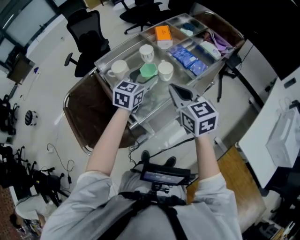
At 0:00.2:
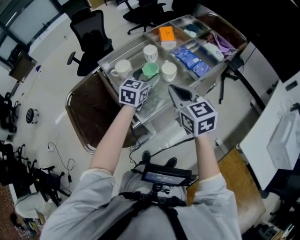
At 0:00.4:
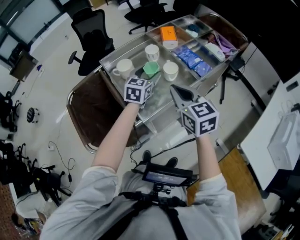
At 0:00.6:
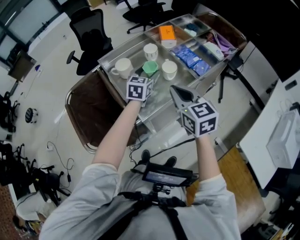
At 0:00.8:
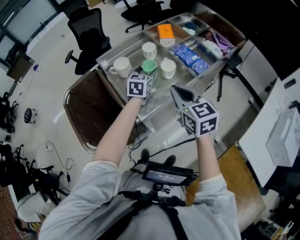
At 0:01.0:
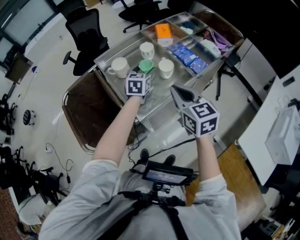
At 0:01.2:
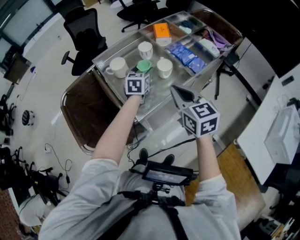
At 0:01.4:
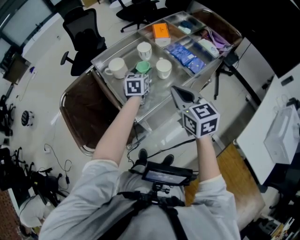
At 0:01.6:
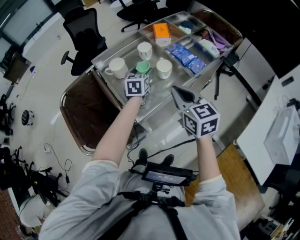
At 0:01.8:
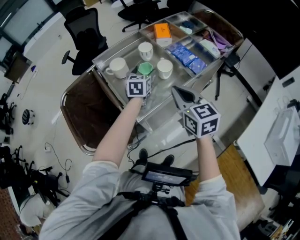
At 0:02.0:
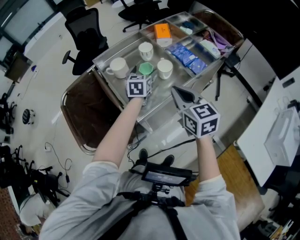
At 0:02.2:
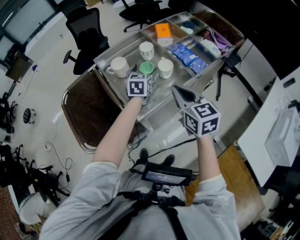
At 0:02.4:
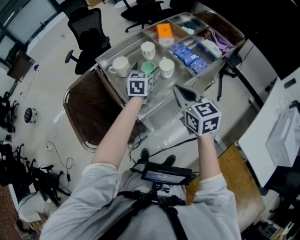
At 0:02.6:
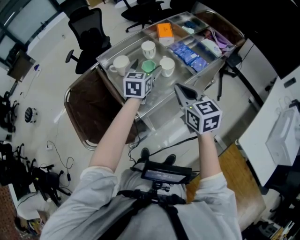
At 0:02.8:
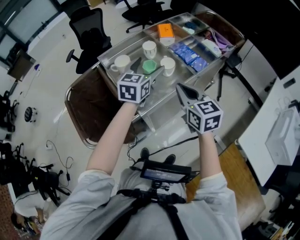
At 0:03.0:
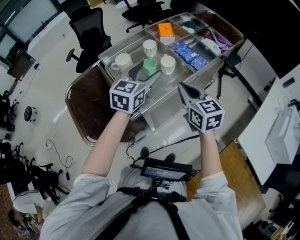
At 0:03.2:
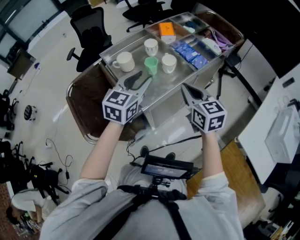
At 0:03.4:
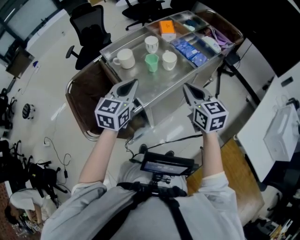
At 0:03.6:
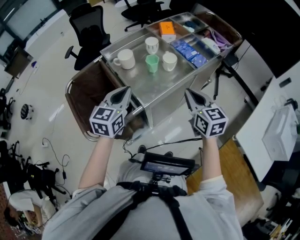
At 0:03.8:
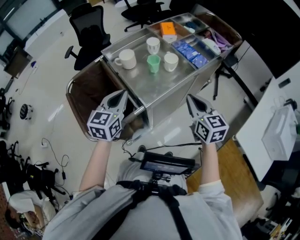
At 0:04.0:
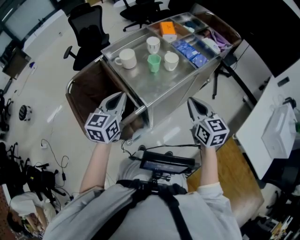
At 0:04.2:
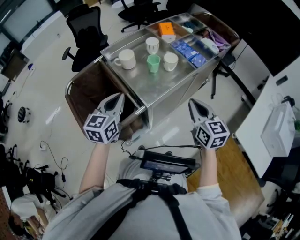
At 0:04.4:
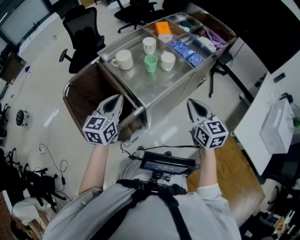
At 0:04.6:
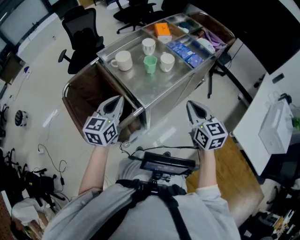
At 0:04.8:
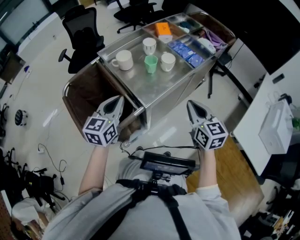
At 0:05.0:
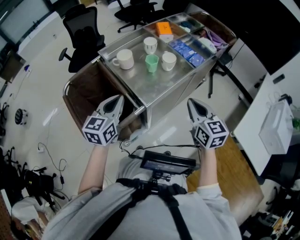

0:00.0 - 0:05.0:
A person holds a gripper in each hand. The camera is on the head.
0:00.0 - 0:01.6: The left gripper is displaced downward and forward by approximately 10 cm, and rotates some 20 degrees.
0:01.6 - 0:03.4: The left gripper travels backward and upward by about 25 cm, and closes its fingers.
0:03.4 - 0:05.0: The right gripper is displaced backward by approximately 5 cm; the left gripper shifts roughly 10 cm to the left.

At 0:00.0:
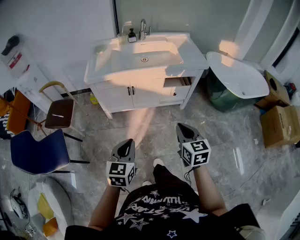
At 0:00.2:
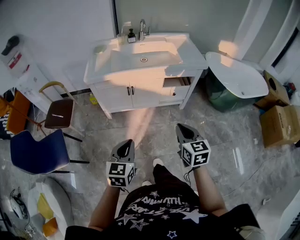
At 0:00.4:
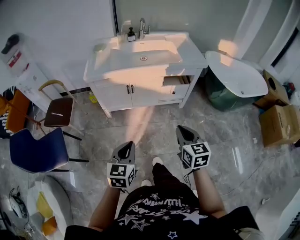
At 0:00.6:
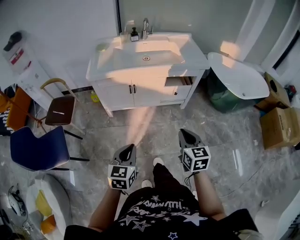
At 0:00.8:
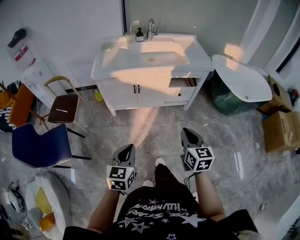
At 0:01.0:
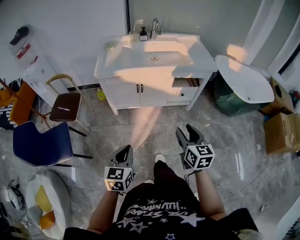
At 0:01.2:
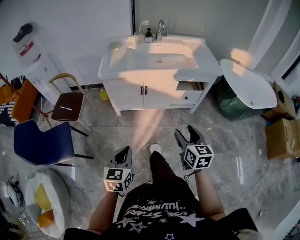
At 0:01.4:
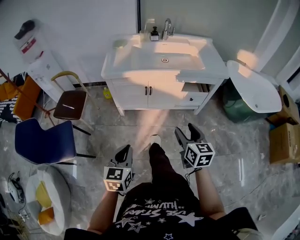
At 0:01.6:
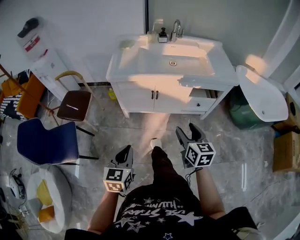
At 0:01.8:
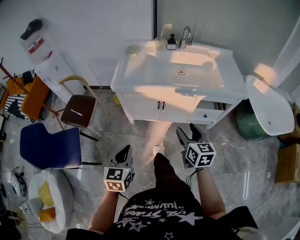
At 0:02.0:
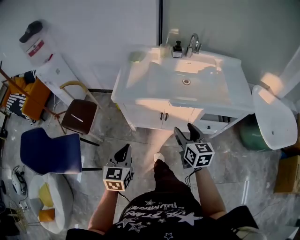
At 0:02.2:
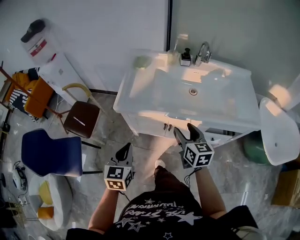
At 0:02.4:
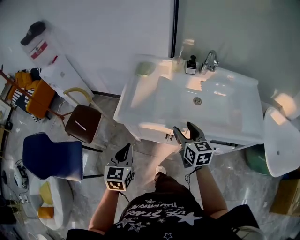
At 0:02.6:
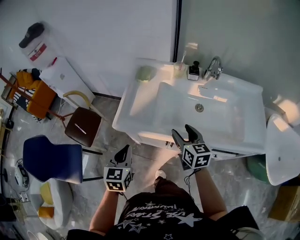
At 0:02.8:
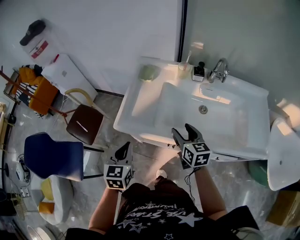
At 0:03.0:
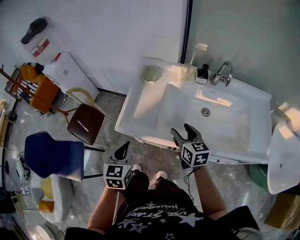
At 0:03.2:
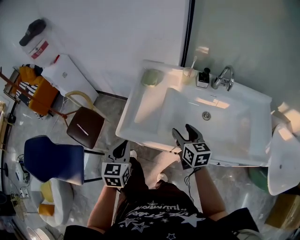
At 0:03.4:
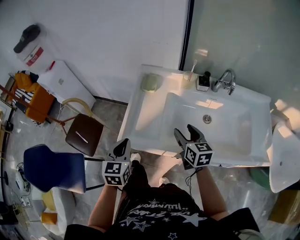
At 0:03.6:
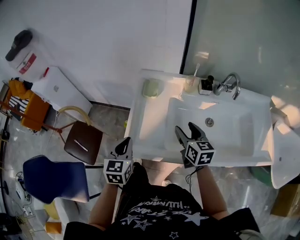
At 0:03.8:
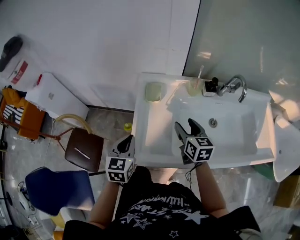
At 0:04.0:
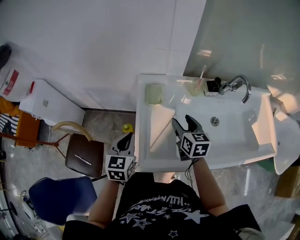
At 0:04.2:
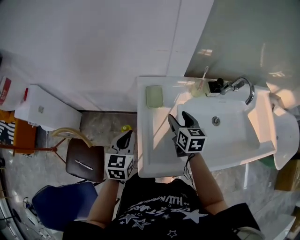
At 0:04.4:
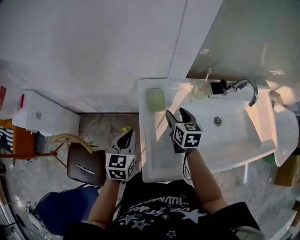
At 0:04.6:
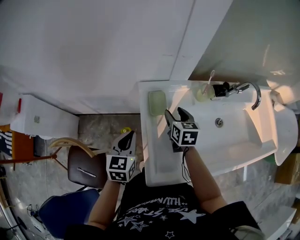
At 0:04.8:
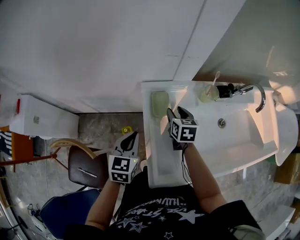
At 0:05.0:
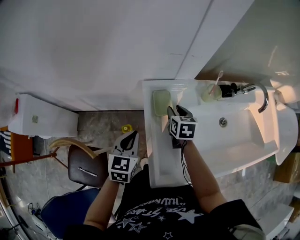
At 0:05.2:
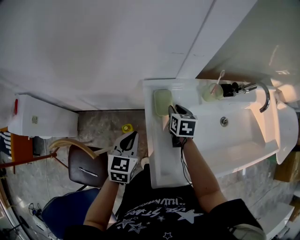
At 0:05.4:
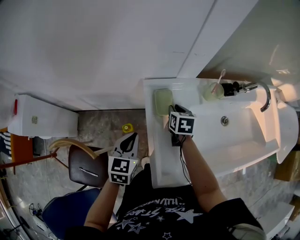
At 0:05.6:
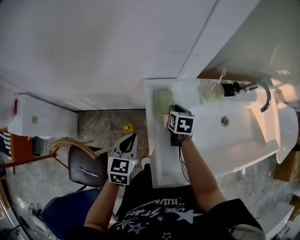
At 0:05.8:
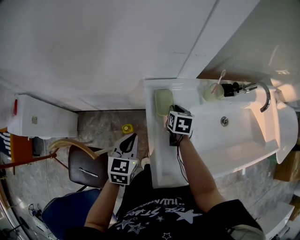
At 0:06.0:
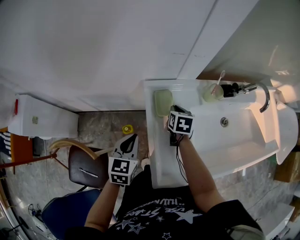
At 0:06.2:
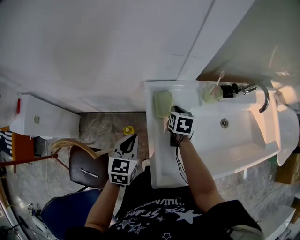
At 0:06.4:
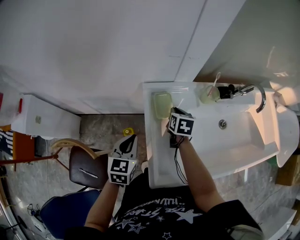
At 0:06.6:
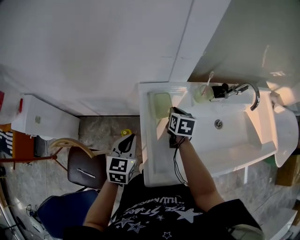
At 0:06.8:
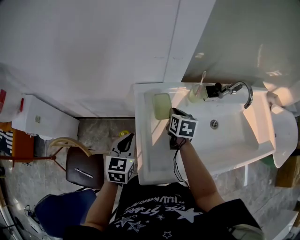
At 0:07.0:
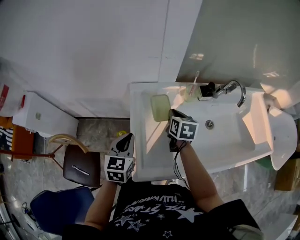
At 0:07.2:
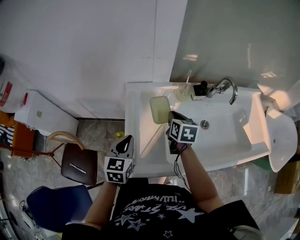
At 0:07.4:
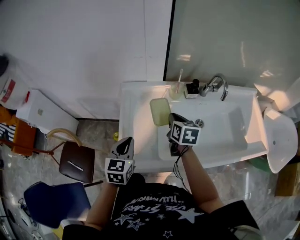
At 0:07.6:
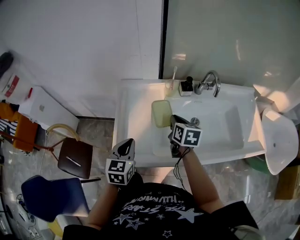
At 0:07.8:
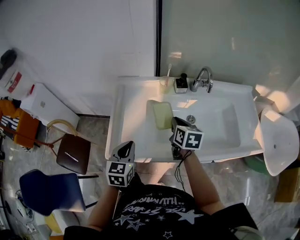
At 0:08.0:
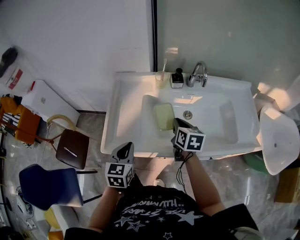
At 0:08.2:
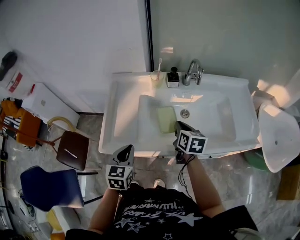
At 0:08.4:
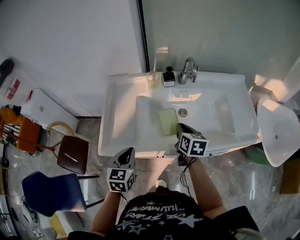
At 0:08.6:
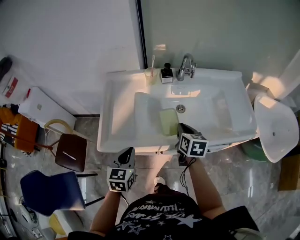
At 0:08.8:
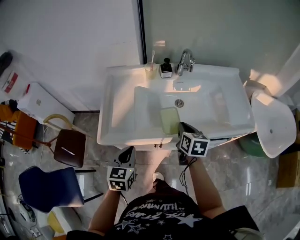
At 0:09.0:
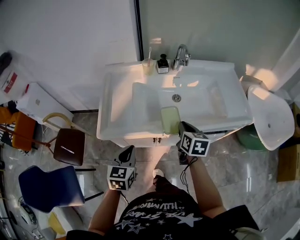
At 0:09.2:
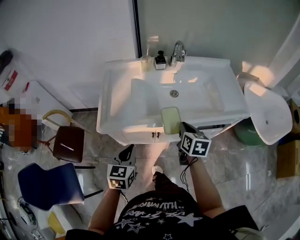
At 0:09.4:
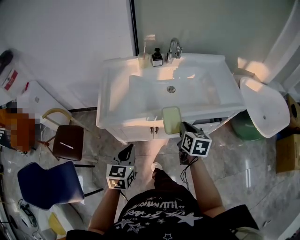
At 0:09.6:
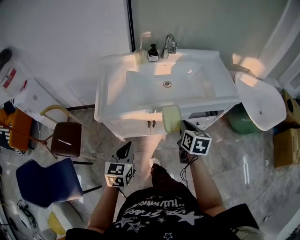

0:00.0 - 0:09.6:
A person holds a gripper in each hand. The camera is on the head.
0:00.0 - 0:01.6: The left gripper goes about 10 cm to the left and forward. Meanwhile the right gripper moves forward and to the left, about 15 cm, and opens its fingers.
0:01.6 - 0:03.2: The pair of grippers is taken forward, some 50 cm. The right gripper changes its angle by roughly 20 degrees.
0:03.2 - 0:04.8: The right gripper shifts by roughly 35 cm, and swivels roughly 30 degrees, while the left gripper ends up some 35 cm from where it was, and changes its angle by roughly 30 degrees.
0:04.8 - 0:06.4: The right gripper closes up.
0:06.4 - 0:08.0: The left gripper is displaced to the right and backward by roughly 30 cm; the right gripper shifts roughly 35 cm to the right, backward and upward.
0:08.0 - 0:09.6: Both grippers travel together backward, some 25 cm.

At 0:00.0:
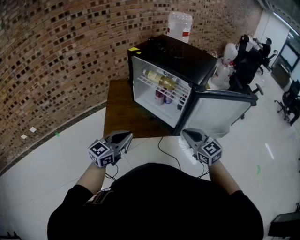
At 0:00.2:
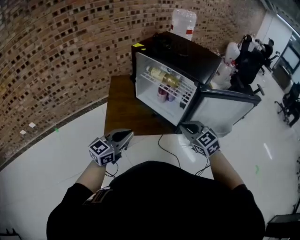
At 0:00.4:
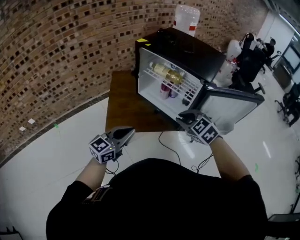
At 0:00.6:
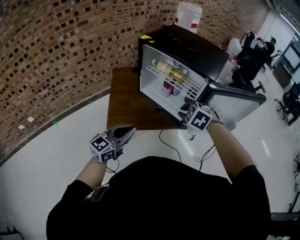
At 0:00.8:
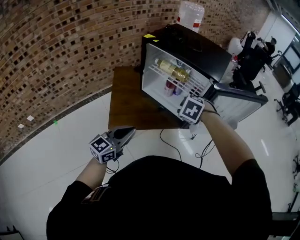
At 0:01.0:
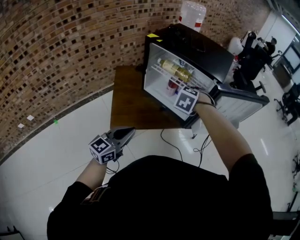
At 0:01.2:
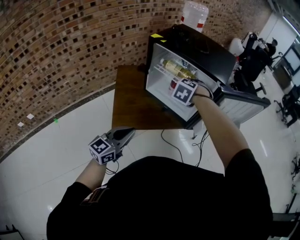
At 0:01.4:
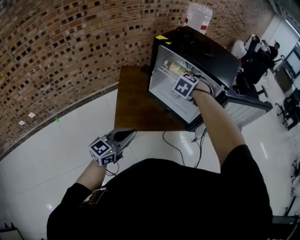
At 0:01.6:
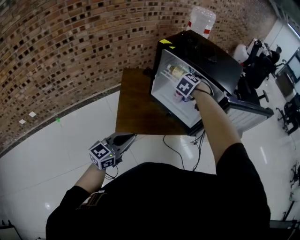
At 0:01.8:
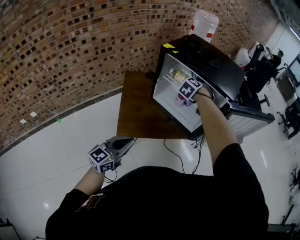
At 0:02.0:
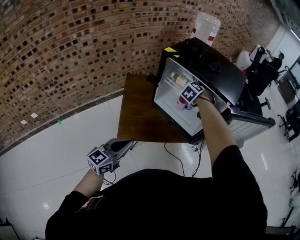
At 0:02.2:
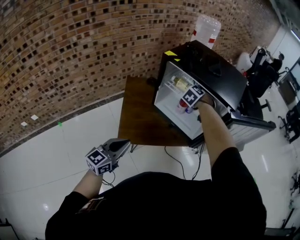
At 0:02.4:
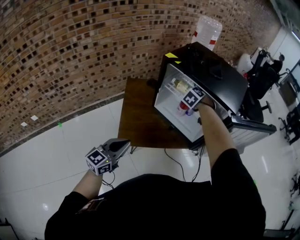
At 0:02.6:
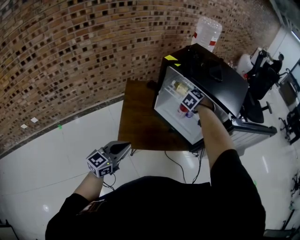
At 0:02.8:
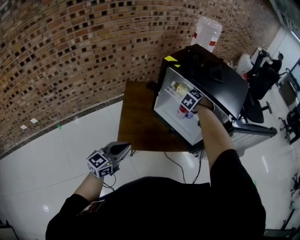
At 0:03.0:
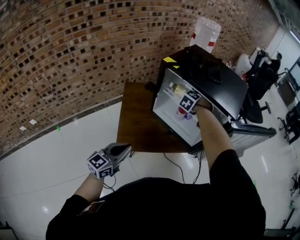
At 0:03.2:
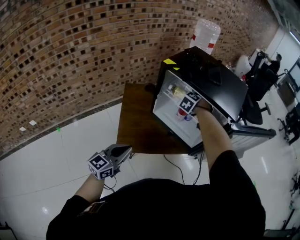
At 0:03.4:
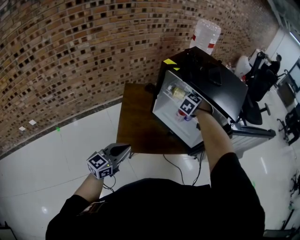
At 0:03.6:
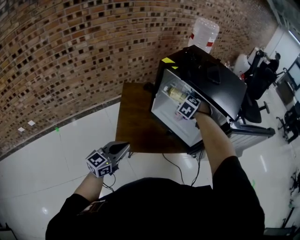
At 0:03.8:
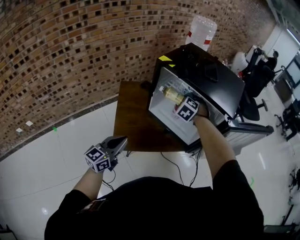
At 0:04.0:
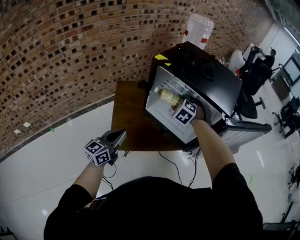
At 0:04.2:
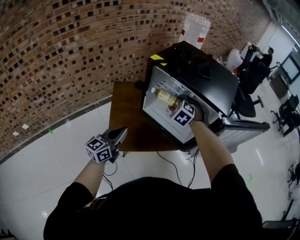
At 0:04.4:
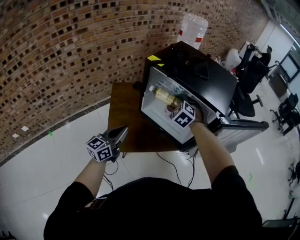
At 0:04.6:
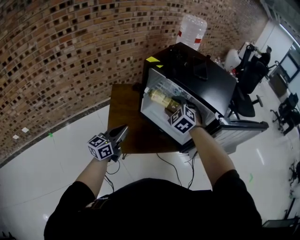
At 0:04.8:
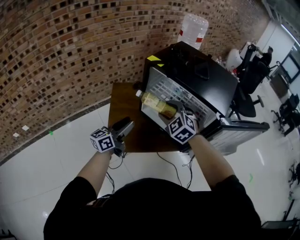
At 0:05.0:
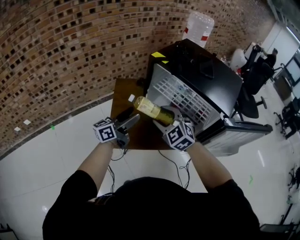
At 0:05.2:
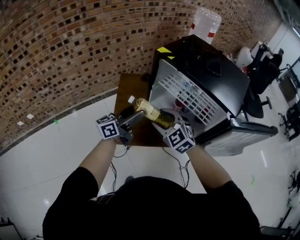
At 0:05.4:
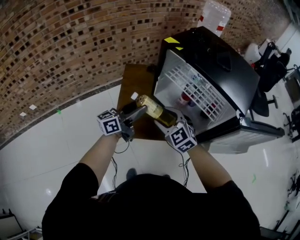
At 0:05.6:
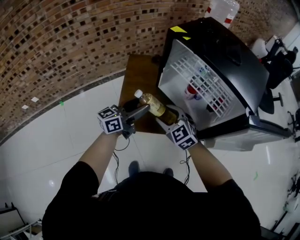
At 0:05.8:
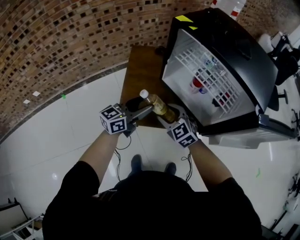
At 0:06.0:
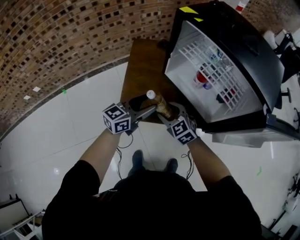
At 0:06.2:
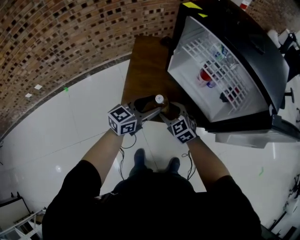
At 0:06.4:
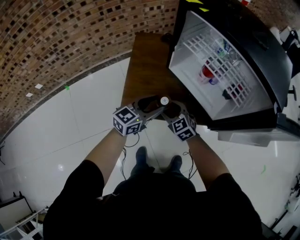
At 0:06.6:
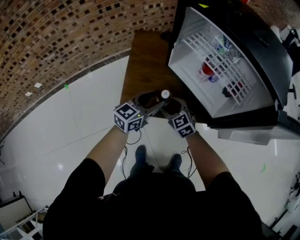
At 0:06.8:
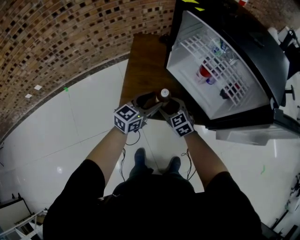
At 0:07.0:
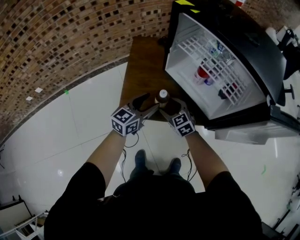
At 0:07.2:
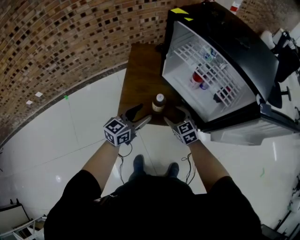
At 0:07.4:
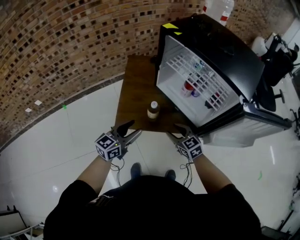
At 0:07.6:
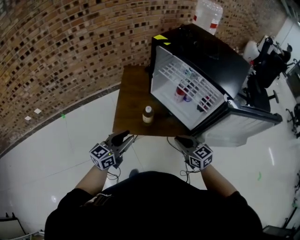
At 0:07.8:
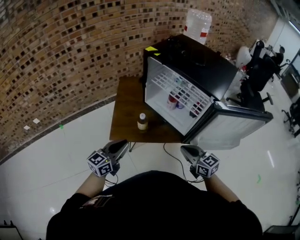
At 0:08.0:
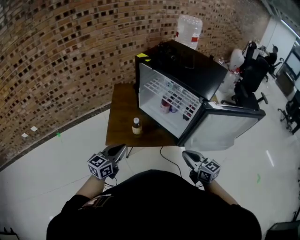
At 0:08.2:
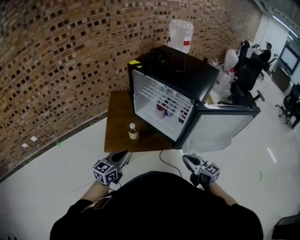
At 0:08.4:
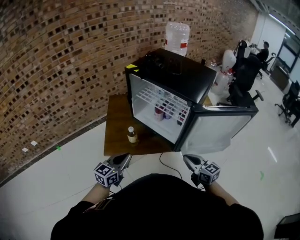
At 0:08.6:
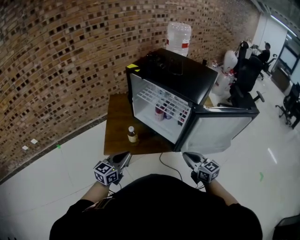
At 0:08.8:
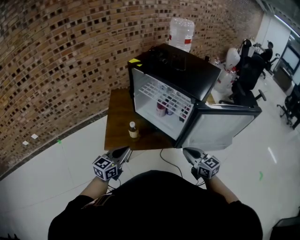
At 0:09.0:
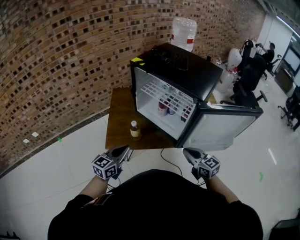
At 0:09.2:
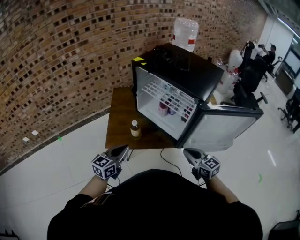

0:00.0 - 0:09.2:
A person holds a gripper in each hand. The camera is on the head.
0:00.0 - 0:01.6: The left gripper moves approximately 15 cm. The right gripper ends up some 35 cm from where it was, points its fingers some 40 degrees further downward, and opens its fingers.
0:01.6 - 0:03.0: The right gripper goes approximately 10 cm forward, while the left gripper is displaced to the left by roughly 5 cm.
0:03.0 - 0:04.6: The left gripper goes roughly 10 cm forward. Meanwhile the right gripper is displaced backward and upward by about 10 cm, and rotates approximately 30 degrees.
0:04.6 - 0:06.2: The right gripper heads downward, backward and to the left, covering some 30 cm, and swivels approximately 30 degrees; the left gripper moves downward, approximately 10 cm, and opens up.
0:06.2 - 0:07.6: The right gripper goes roughly 20 cm to the right, backward and upward, turns by approximately 30 degrees, and closes up. The left gripper heads backward and upward, covering some 15 cm.
0:07.6 - 0:09.2: The left gripper heads to the right, covering about 5 cm. Meanwhile the right gripper travels to the right, upward and backward by roughly 15 cm.
